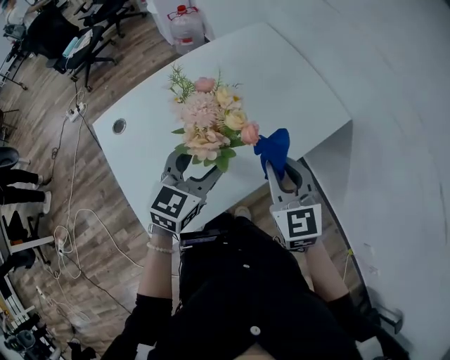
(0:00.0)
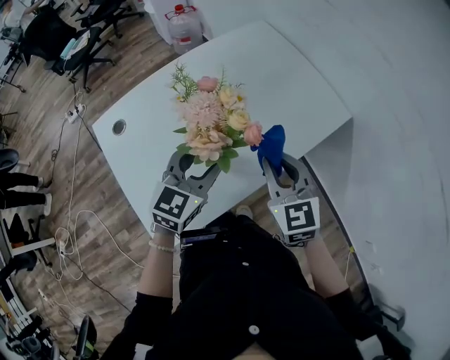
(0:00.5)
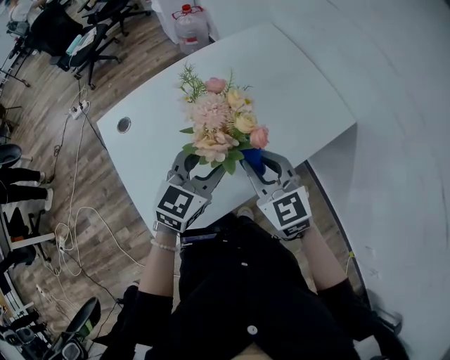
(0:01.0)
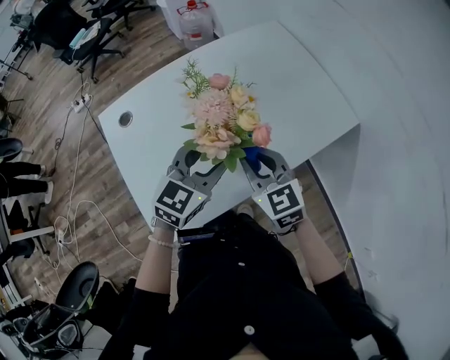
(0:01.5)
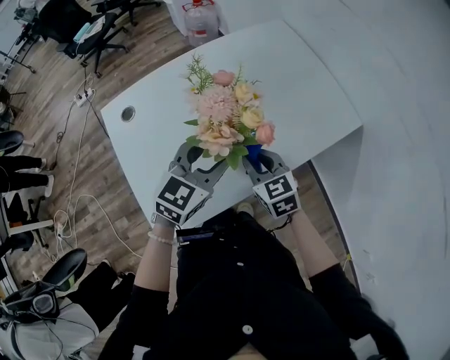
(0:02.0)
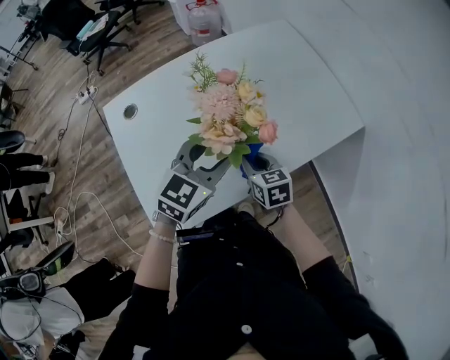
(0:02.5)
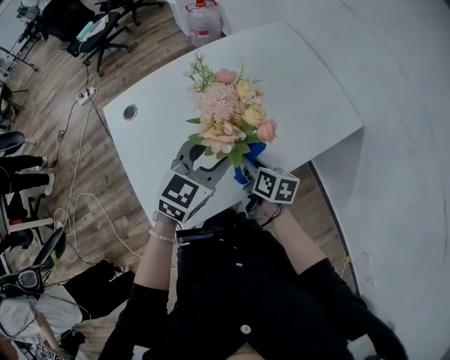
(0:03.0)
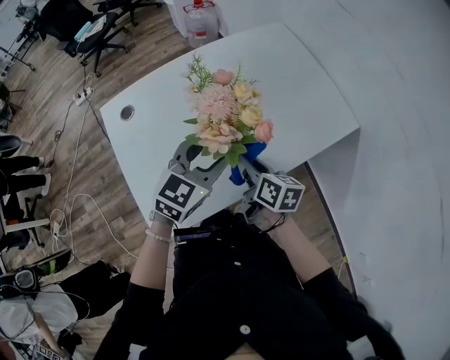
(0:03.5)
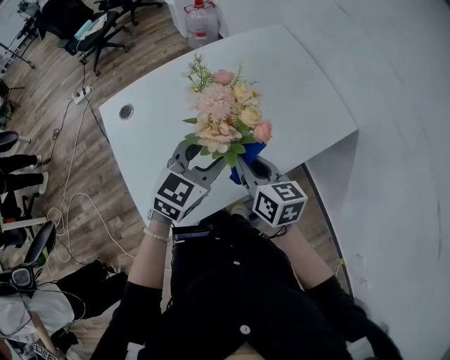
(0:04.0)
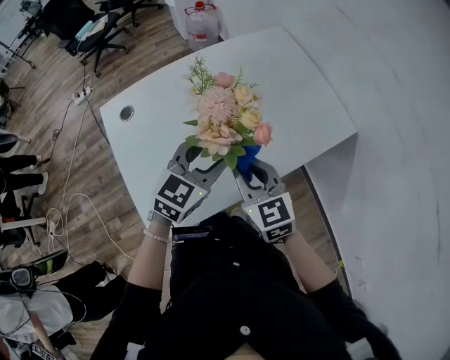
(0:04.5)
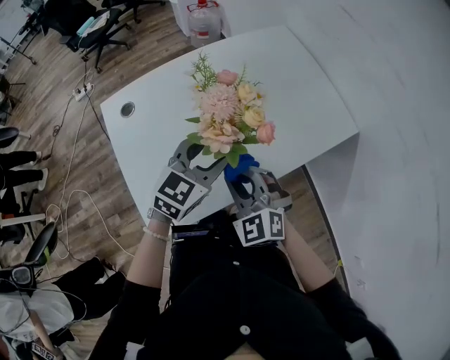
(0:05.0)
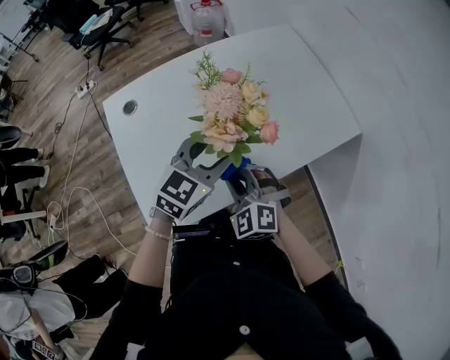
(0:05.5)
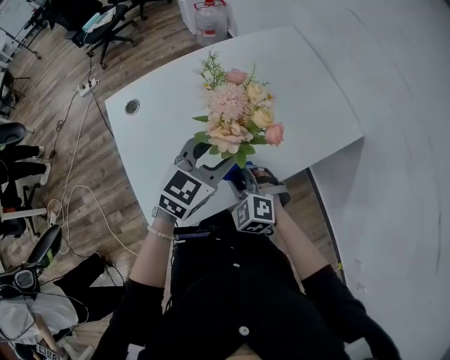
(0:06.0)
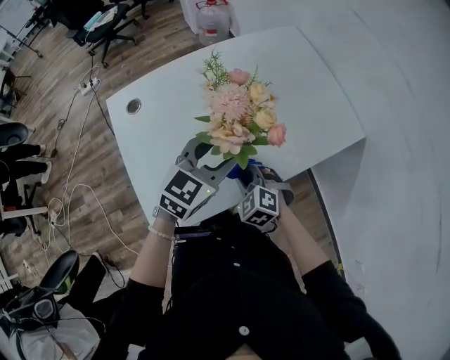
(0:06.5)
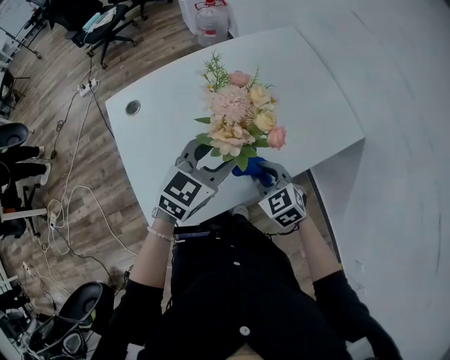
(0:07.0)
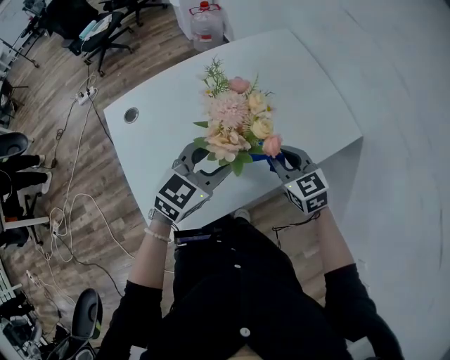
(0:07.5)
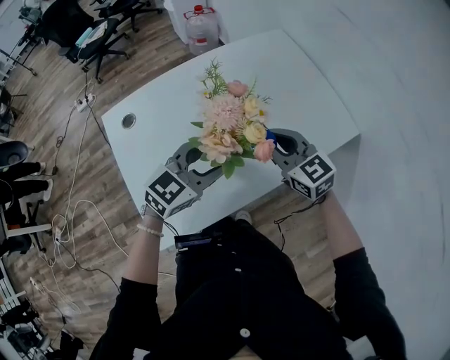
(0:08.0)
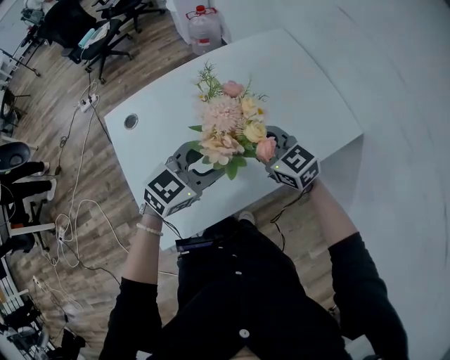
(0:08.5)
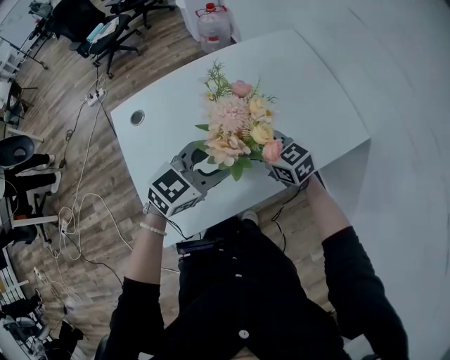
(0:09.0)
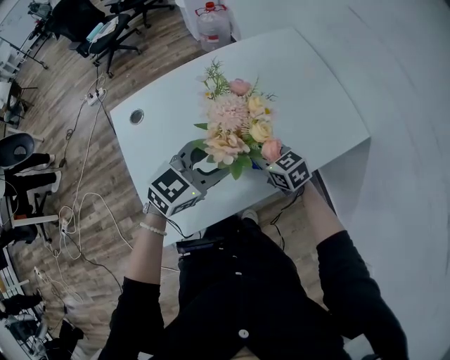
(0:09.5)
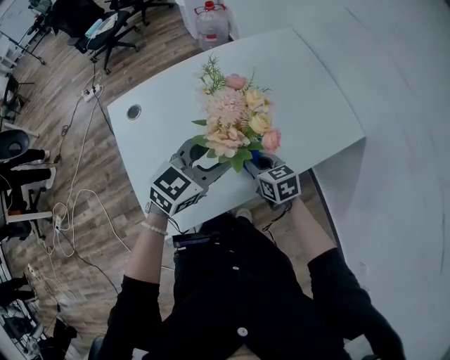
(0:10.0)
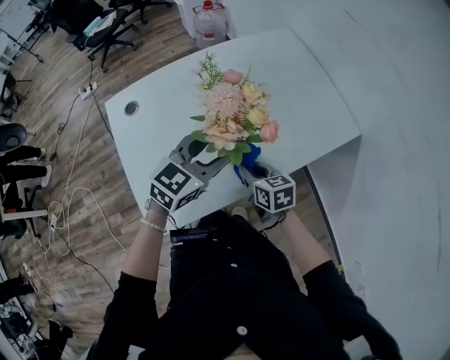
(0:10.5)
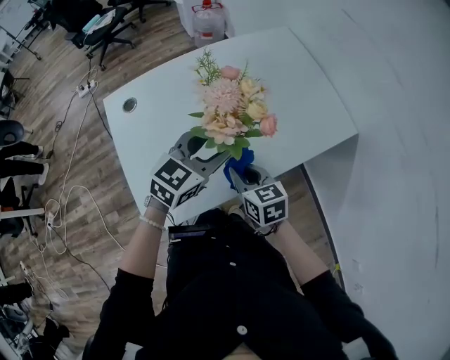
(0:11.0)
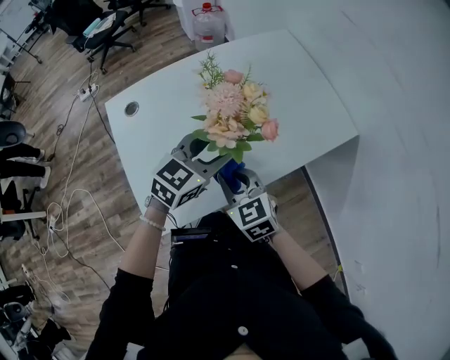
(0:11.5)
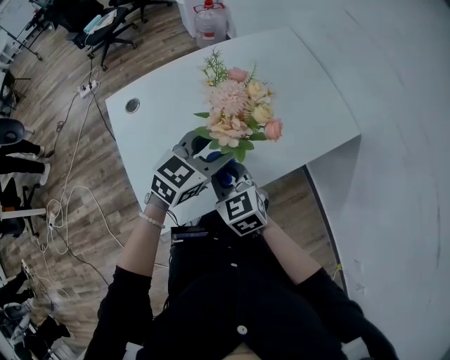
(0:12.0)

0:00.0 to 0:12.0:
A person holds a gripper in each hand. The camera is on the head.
0:00.0 to 0:02.0: The right gripper heads downward and to the left, covering some 15 cm, and rotates about 20 degrees.
0:02.0 to 0:04.0: The right gripper goes approximately 5 cm upward, and turns by approximately 30 degrees.
0:04.0 to 0:06.0: The right gripper moves downward, to the left and backward, approximately 10 cm, and rolls counterclockwise, seen from behind, by some 70 degrees.
0:06.0 to 0:08.0: The right gripper travels upward, forward and to the right by about 20 cm, and changes its angle by roughly 40 degrees.
0:08.0 to 0:10.0: The right gripper is displaced downward by some 15 cm, and changes its angle by some 30 degrees.
0:10.0 to 0:12.0: The right gripper is displaced to the left, upward and backward by about 15 cm, and turns by about 20 degrees.

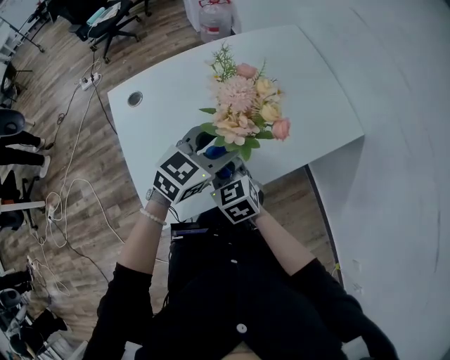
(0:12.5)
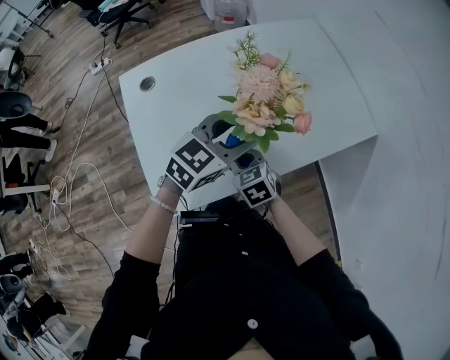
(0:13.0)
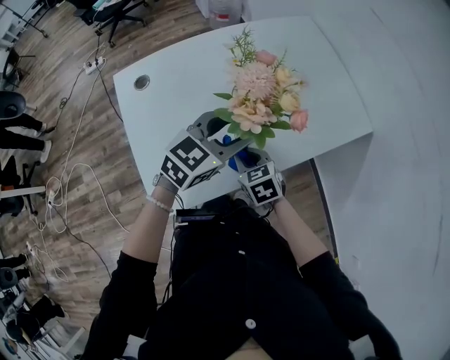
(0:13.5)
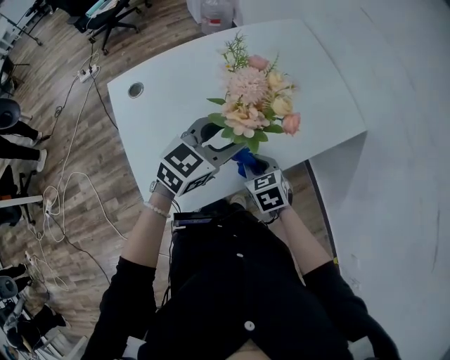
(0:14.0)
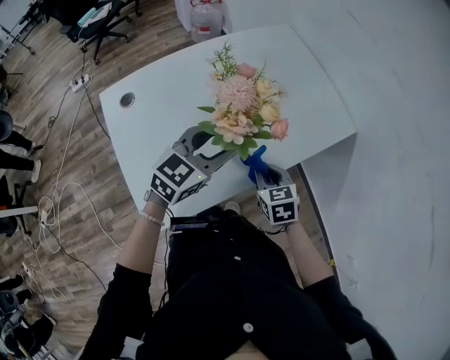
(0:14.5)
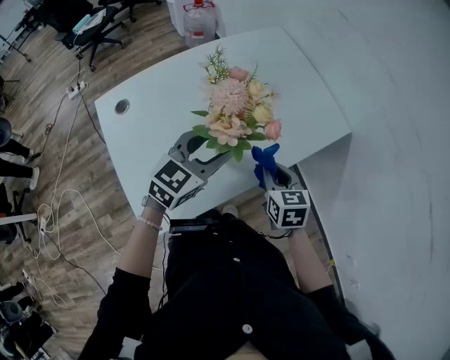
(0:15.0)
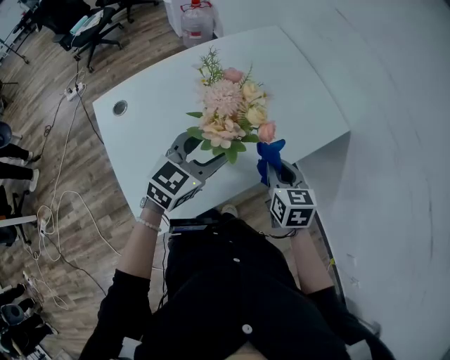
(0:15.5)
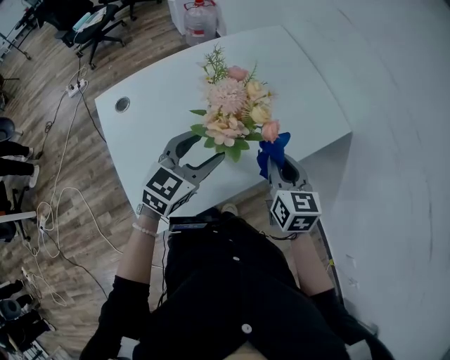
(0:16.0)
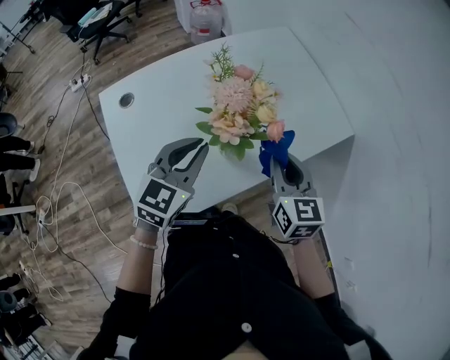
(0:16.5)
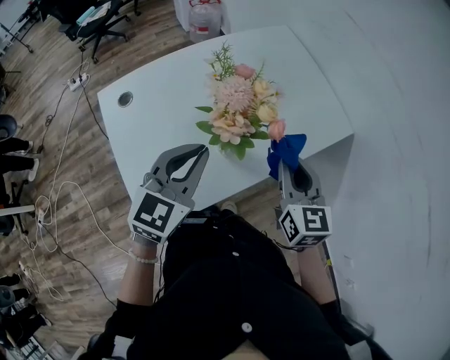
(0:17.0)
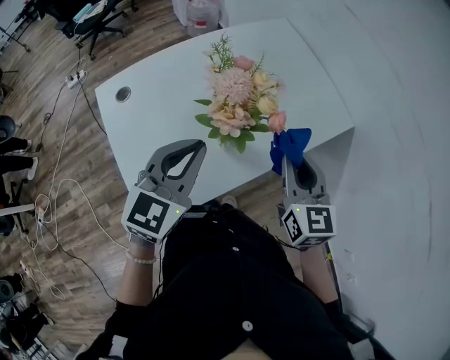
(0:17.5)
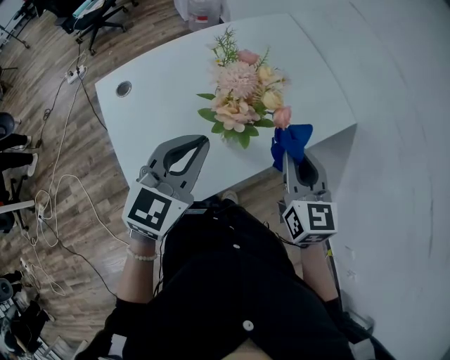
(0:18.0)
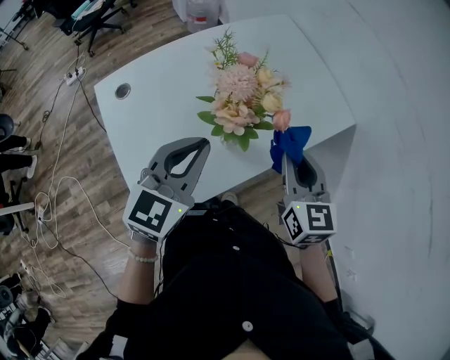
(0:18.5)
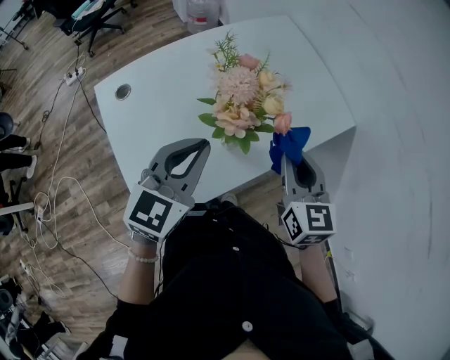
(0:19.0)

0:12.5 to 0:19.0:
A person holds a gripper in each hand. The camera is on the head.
0:12.5 to 0:14.5: The right gripper heads to the right, covering some 15 cm, and turns by some 20 degrees.
0:14.5 to 0:17.0: The right gripper shifts approximately 15 cm upward, and rotates approximately 30 degrees; the left gripper goes about 5 cm upward, and closes.
0:17.0 to 0:19.0: There are only small adjustments of the grippers.

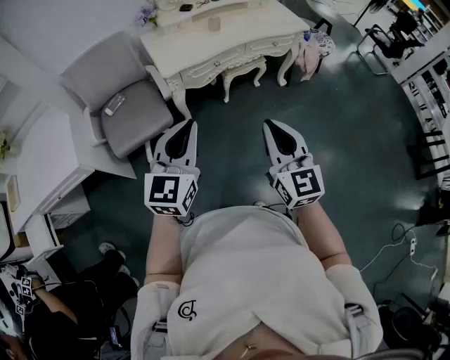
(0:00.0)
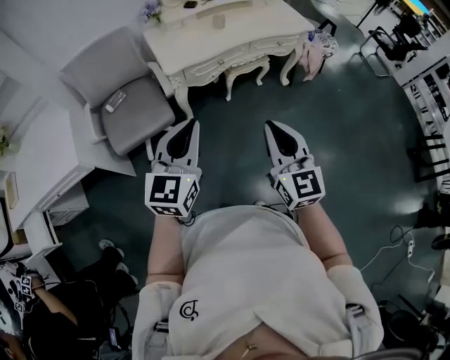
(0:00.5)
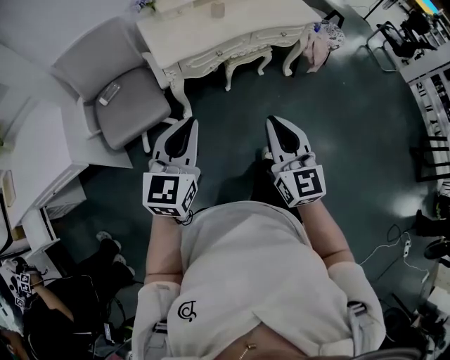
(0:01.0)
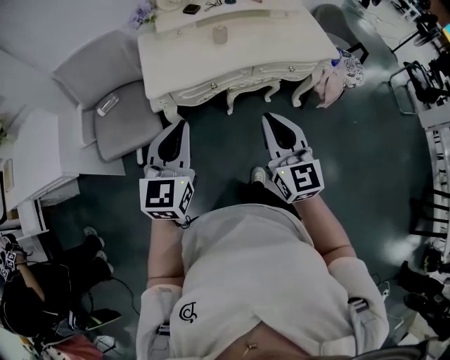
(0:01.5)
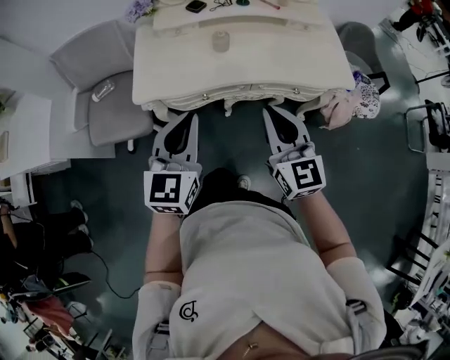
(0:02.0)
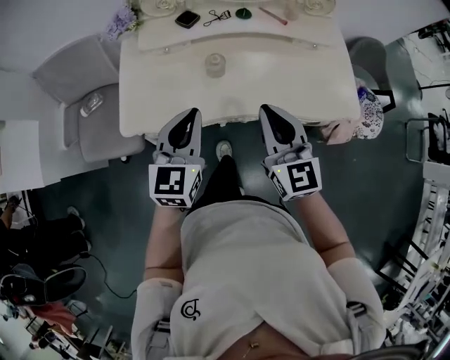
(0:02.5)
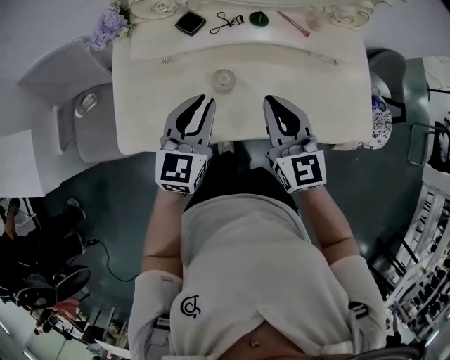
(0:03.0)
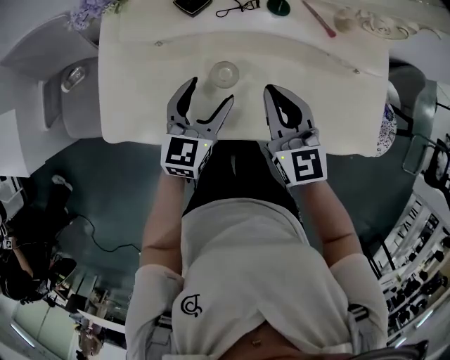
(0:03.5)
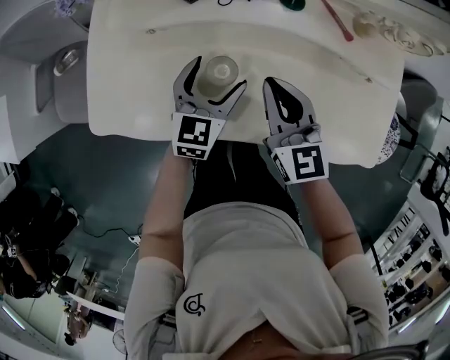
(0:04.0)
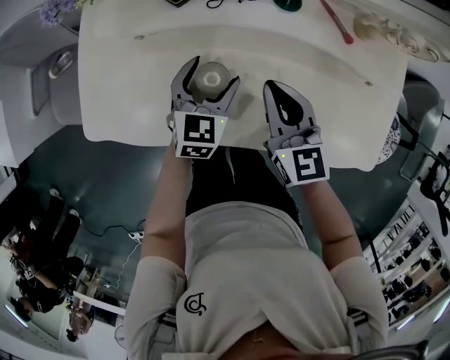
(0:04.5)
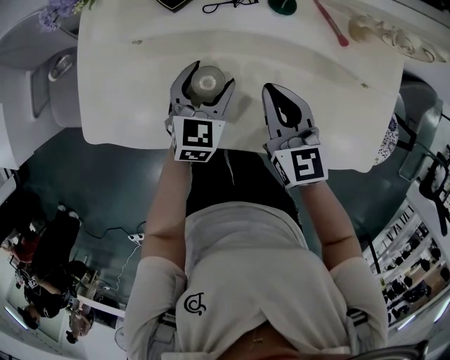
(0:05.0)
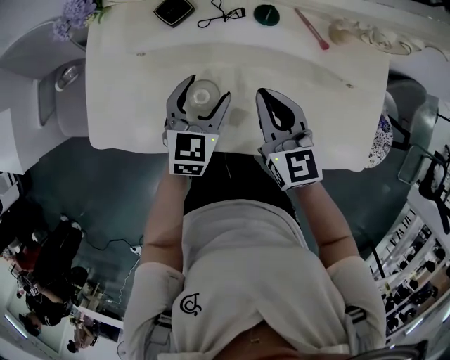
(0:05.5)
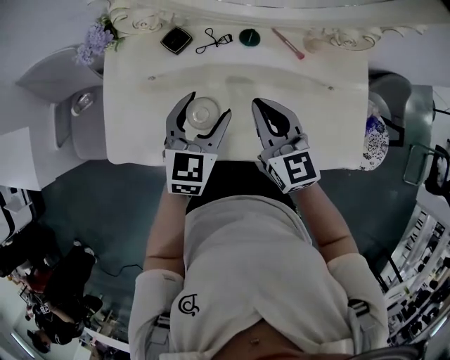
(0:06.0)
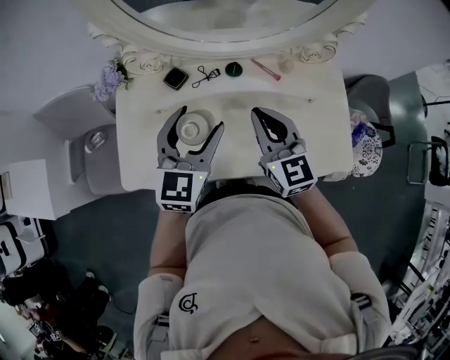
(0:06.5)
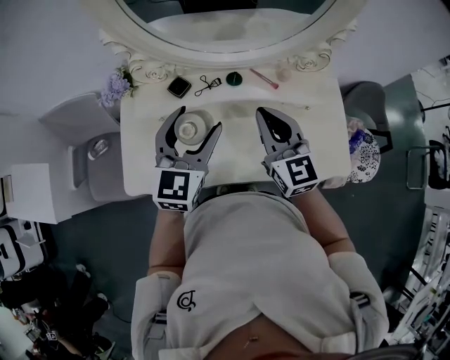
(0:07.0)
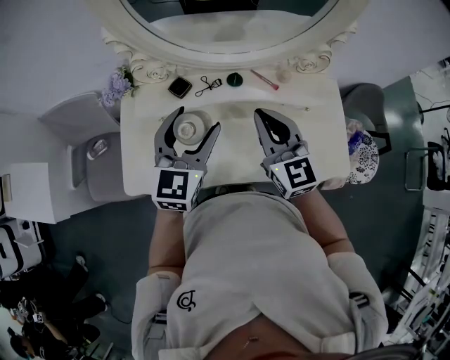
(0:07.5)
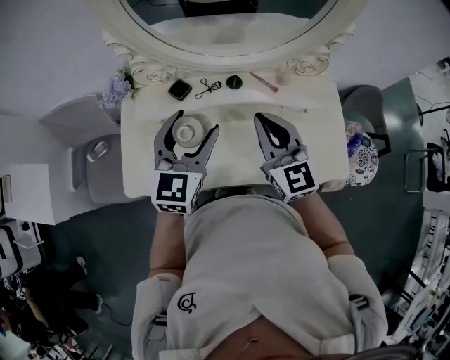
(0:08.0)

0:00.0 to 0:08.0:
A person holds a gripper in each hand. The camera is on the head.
0:00.0 to 0:02.0: The grippers both shift forward and to the right by roughly 40 cm. The left gripper swivels some 30 degrees, while the right gripper rotates some 20 degrees.
0:02.0 to 0:04.0: The grippers both shift forward and downward by some 40 cm. The left gripper opens its fingers.
0:04.0 to 0:06.0: The left gripper is displaced upward by roughly 10 cm; the right gripper shifts about 5 cm upward.
0:06.0 to 0:08.0: The grippers both shift upward by some 15 cm.
